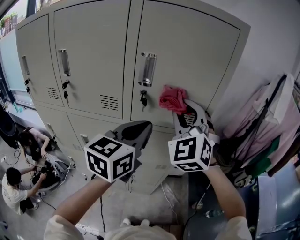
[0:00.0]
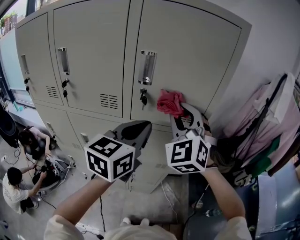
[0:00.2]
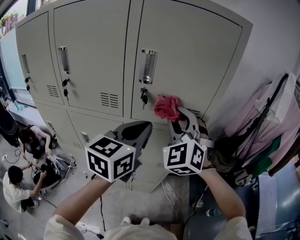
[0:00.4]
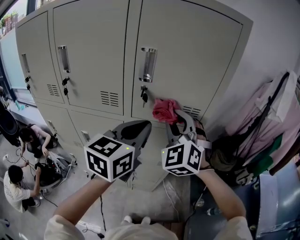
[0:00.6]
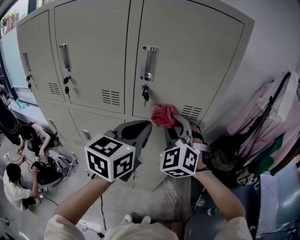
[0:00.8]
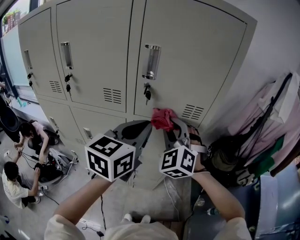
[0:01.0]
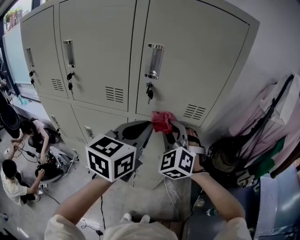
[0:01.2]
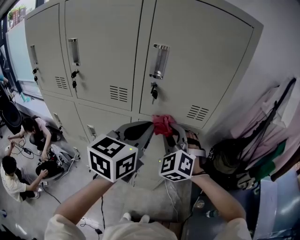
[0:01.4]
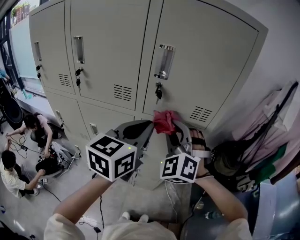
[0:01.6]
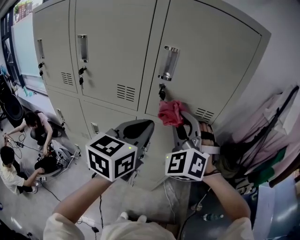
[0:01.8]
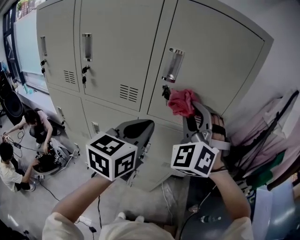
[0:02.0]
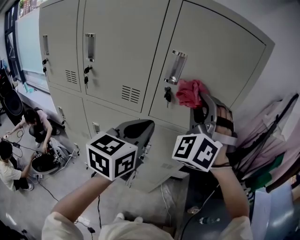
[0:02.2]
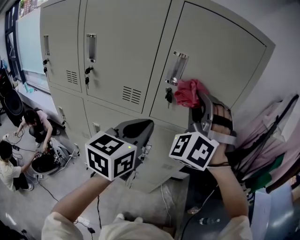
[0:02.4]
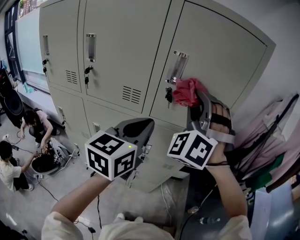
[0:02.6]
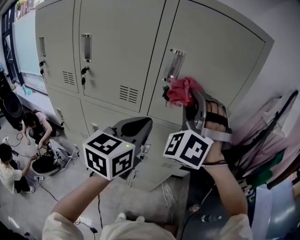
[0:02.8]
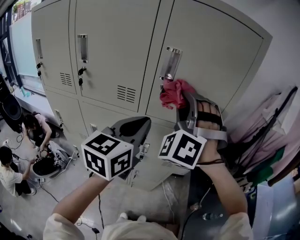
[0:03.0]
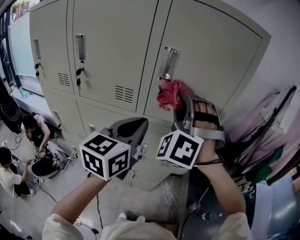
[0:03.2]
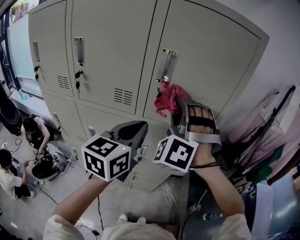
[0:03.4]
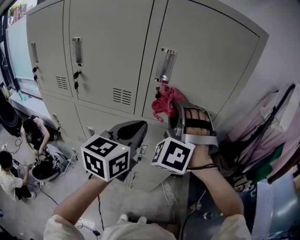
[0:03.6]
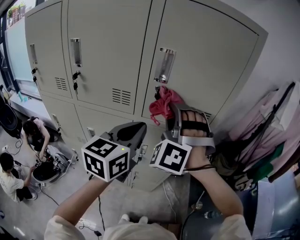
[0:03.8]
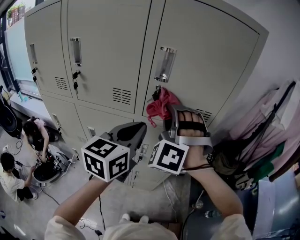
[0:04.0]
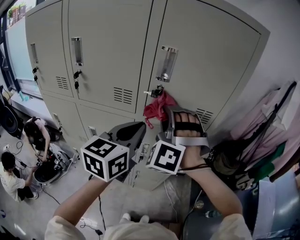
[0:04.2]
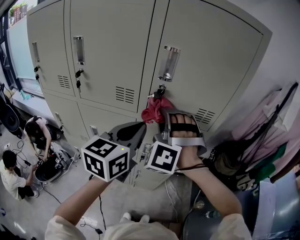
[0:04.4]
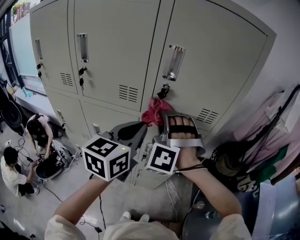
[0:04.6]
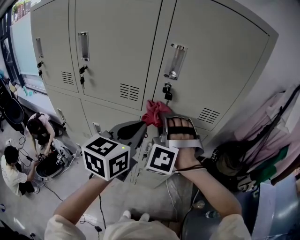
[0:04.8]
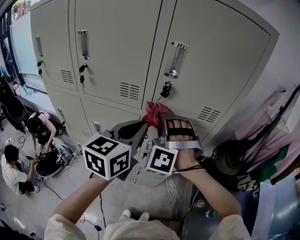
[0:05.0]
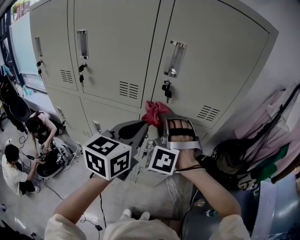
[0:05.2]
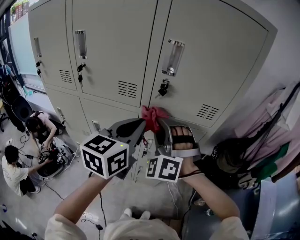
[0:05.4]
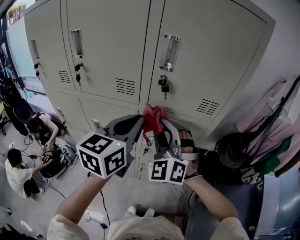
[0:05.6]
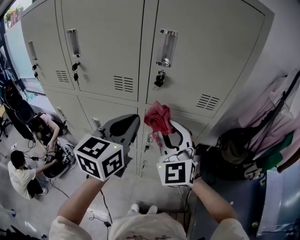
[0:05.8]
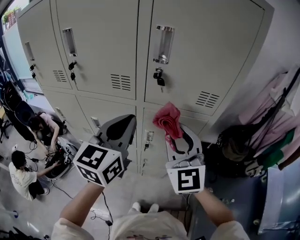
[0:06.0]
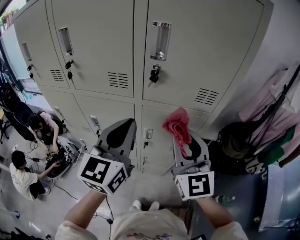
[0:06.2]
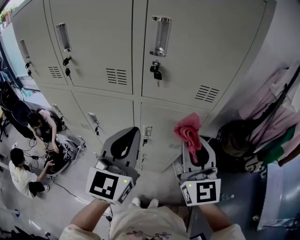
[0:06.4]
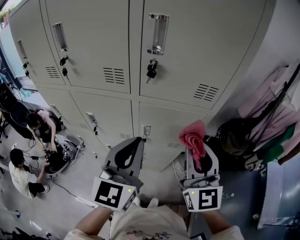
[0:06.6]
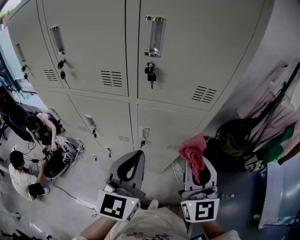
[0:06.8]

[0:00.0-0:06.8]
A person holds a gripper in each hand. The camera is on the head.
0:00.0 to 0:01.4: The right gripper goes roughly 15 cm downward.
0:01.4 to 0:02.8: The right gripper goes roughly 15 cm upward, and changes its angle by roughly 30 degrees.
0:02.8 to 0:04.0: The right gripper travels downward by about 10 cm.
0:04.0 to 0:05.4: The right gripper shifts approximately 10 cm downward.
0:05.4 to 0:06.8: The left gripper heads backward and downward, covering about 10 cm, while the right gripper travels to the right and backward by some 20 cm, and rotates around the line of its fingers by about 70 degrees, clockwise from behind.

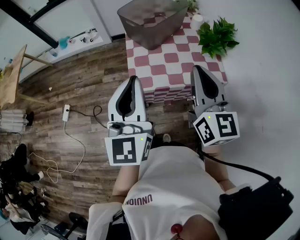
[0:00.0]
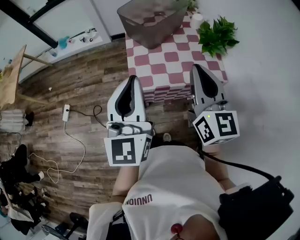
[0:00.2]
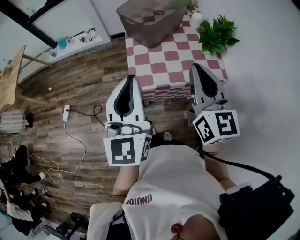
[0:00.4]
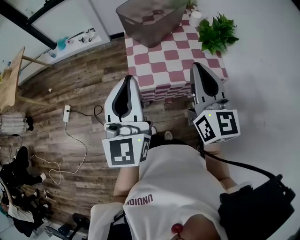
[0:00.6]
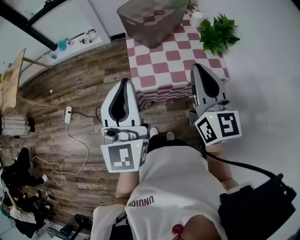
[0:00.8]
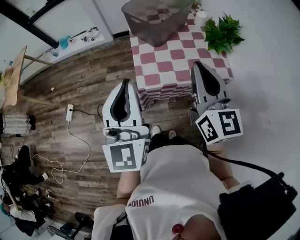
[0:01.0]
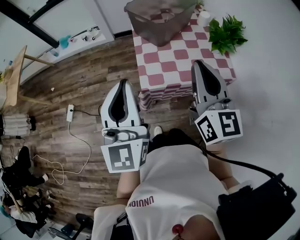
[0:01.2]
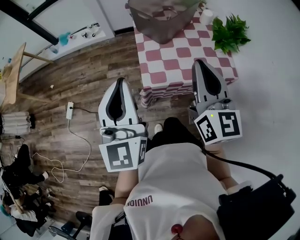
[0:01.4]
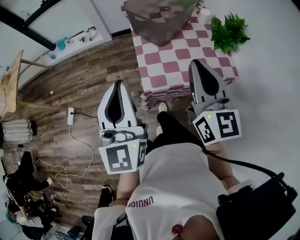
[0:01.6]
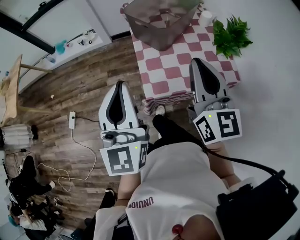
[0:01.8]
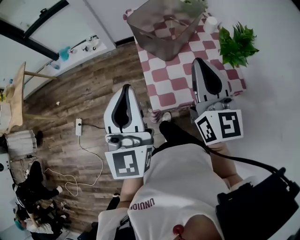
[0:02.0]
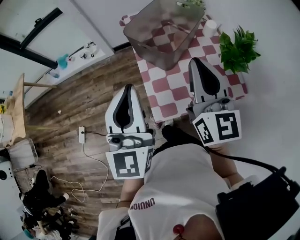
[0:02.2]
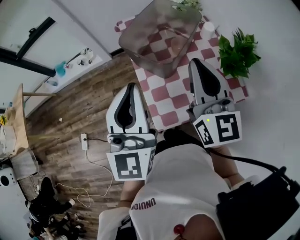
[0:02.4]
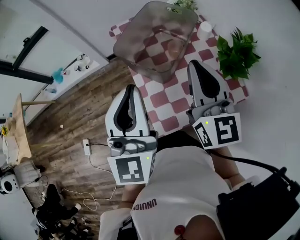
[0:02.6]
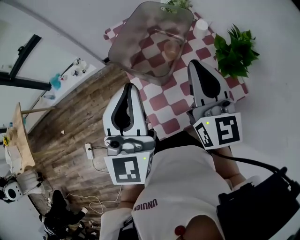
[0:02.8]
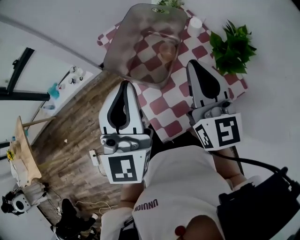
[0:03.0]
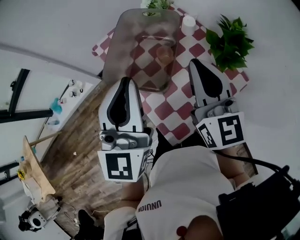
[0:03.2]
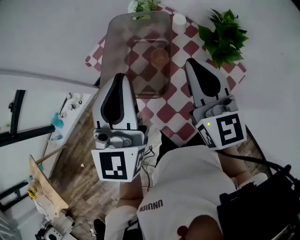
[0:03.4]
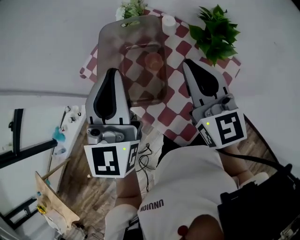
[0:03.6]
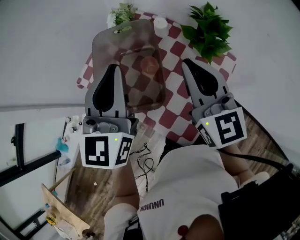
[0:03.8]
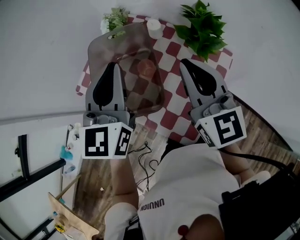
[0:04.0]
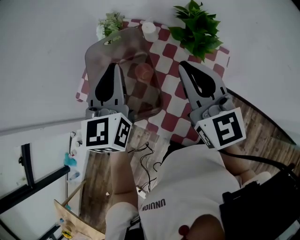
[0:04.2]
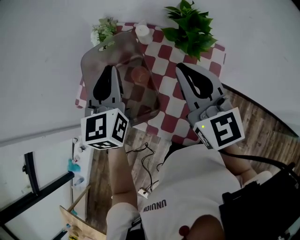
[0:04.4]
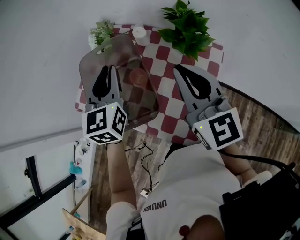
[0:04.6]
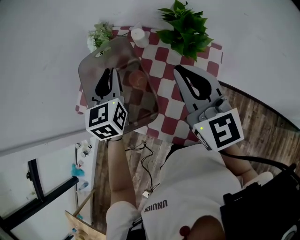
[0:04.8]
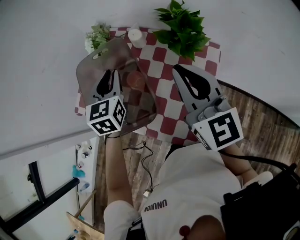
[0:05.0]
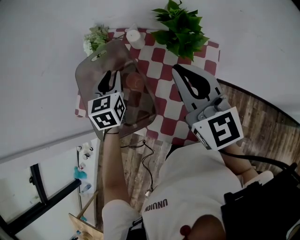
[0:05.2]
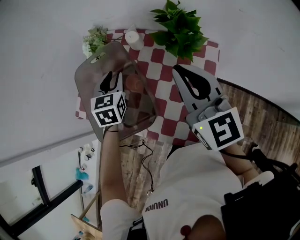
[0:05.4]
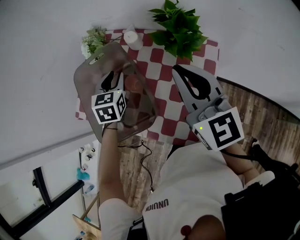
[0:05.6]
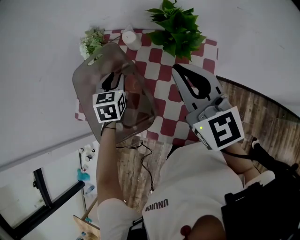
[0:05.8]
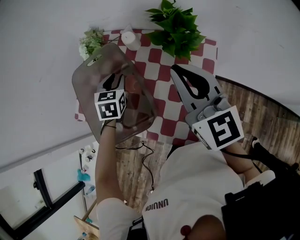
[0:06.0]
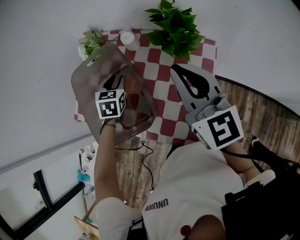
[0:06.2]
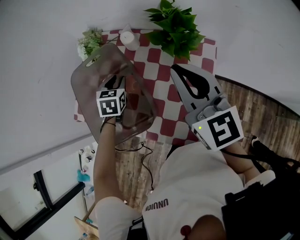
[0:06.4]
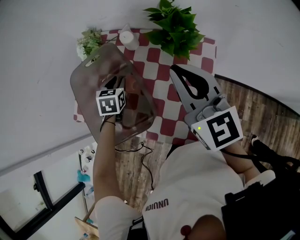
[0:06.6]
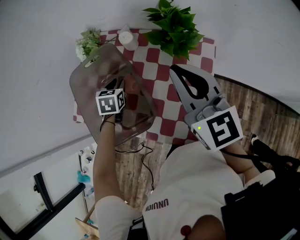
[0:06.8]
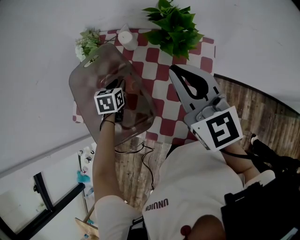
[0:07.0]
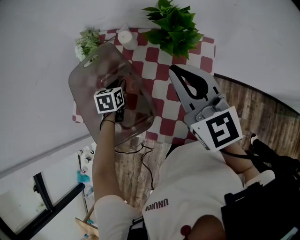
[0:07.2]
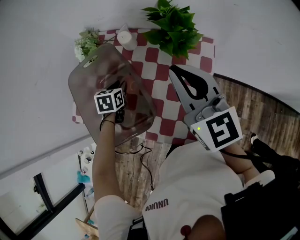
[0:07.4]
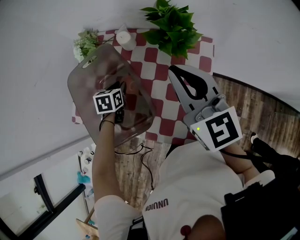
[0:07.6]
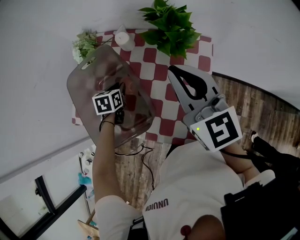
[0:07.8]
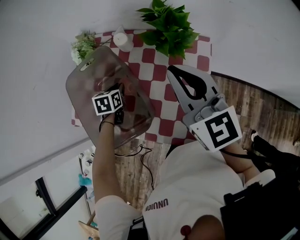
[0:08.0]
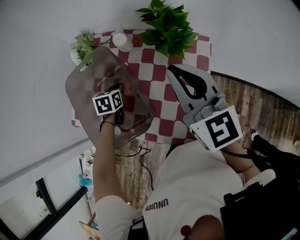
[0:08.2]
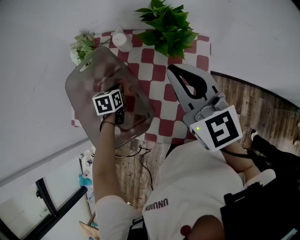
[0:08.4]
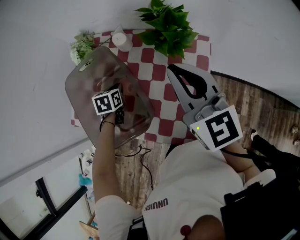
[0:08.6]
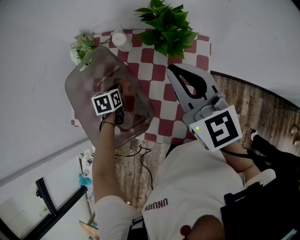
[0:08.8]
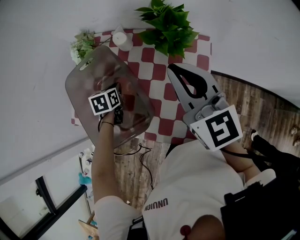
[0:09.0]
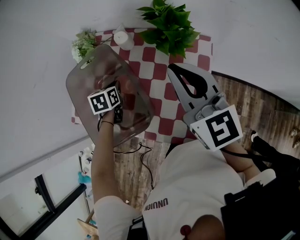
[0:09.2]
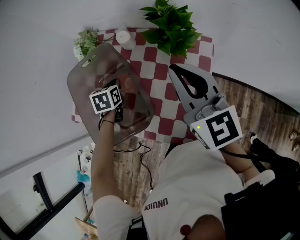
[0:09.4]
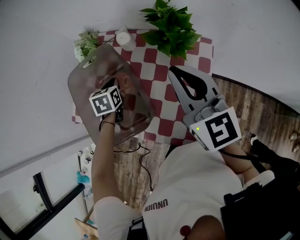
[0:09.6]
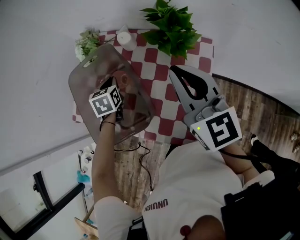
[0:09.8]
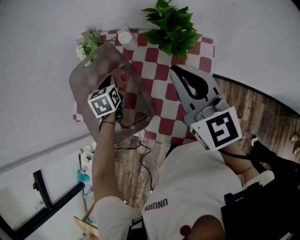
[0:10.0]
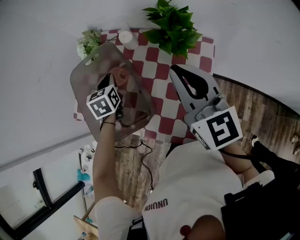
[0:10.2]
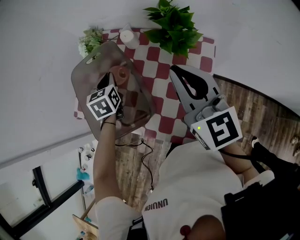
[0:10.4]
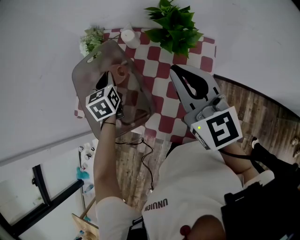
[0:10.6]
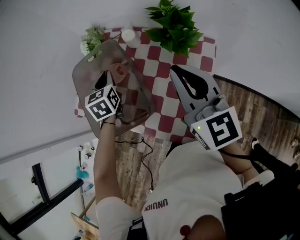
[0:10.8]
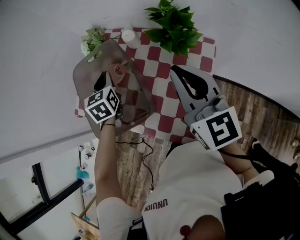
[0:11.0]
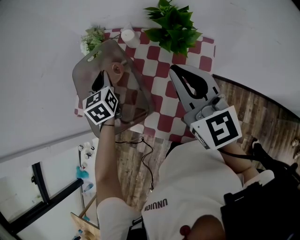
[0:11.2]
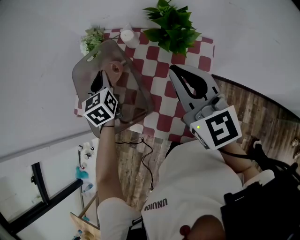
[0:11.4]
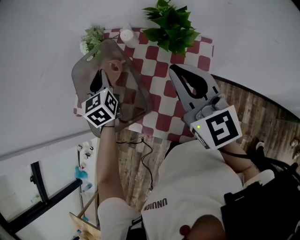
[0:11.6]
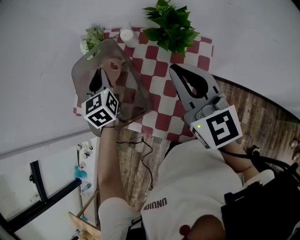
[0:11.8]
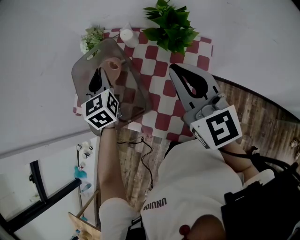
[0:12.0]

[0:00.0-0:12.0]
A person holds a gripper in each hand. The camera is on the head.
0:00.0 to 0:01.6: The grippers both shift to the left by about 10 cm.
0:01.6 to 0:03.0: The grippers both shift forward by about 25 cm. The left gripper rotates roughly 20 degrees.
0:03.0 to 0:04.4: The right gripper swivels approximately 30 degrees, while the left gripper moves some 20 cm, and rotates about 40 degrees.
0:04.4 to 0:06.0: The left gripper shifts roughly 20 cm downward and forward, points its fingers roughly 30 degrees further downward, and opens up.
0:06.0 to 0:07.6: The left gripper goes some 10 cm downward.
0:07.6 to 0:09.0: The grippers stay close to where they were, moving slightly.
0:09.0 to 0:10.4: The left gripper moves upward, about 10 cm, and swivels approximately 20 degrees.
0:10.4 to 0:12.0: The left gripper travels upward by approximately 10 cm.

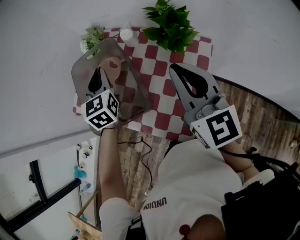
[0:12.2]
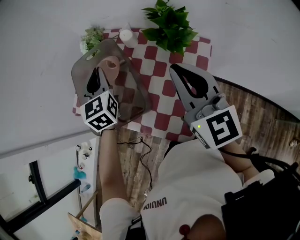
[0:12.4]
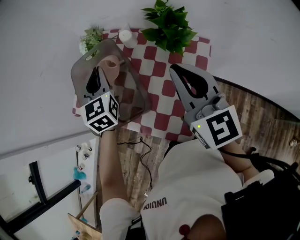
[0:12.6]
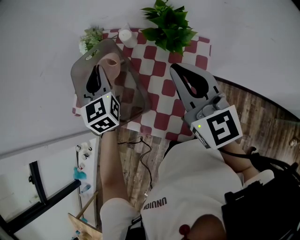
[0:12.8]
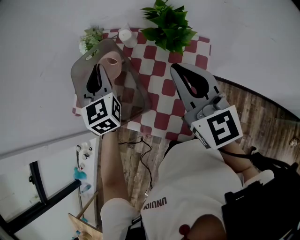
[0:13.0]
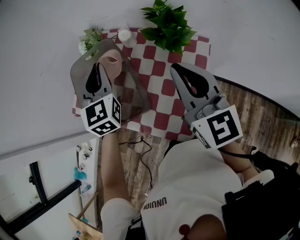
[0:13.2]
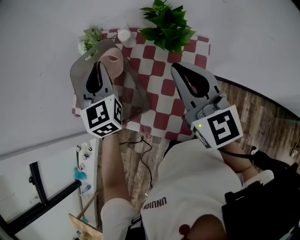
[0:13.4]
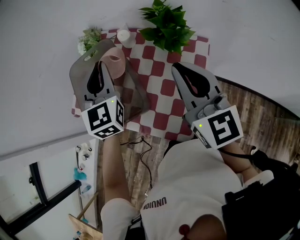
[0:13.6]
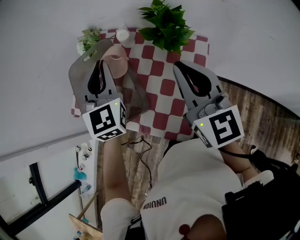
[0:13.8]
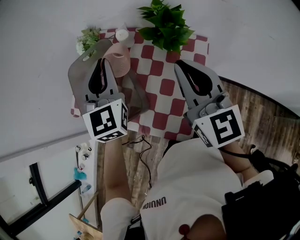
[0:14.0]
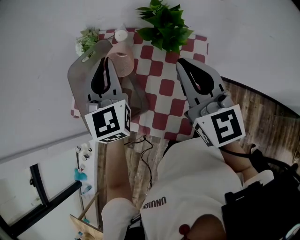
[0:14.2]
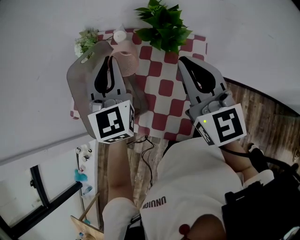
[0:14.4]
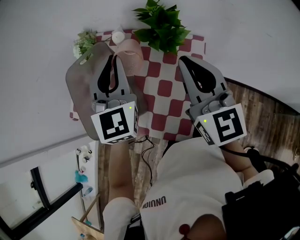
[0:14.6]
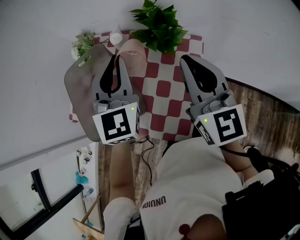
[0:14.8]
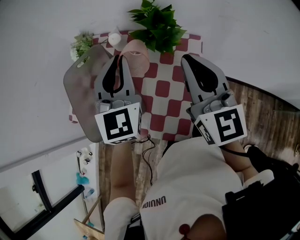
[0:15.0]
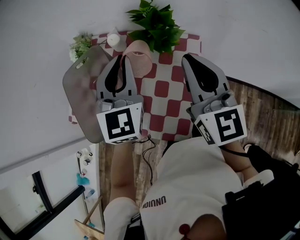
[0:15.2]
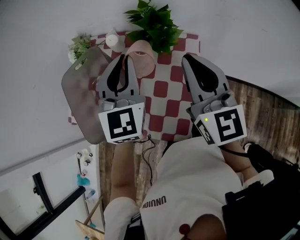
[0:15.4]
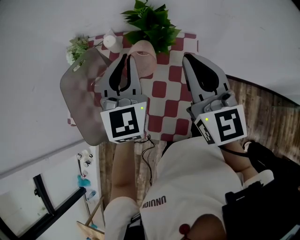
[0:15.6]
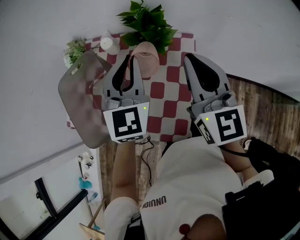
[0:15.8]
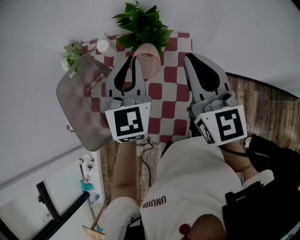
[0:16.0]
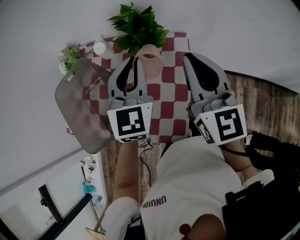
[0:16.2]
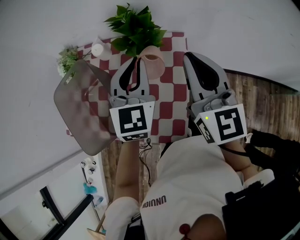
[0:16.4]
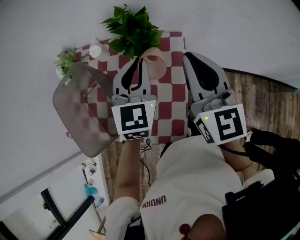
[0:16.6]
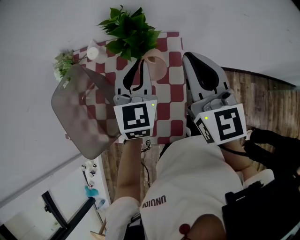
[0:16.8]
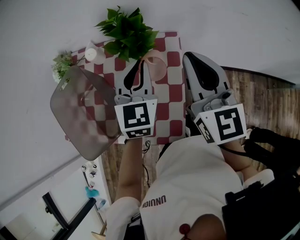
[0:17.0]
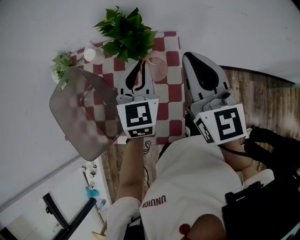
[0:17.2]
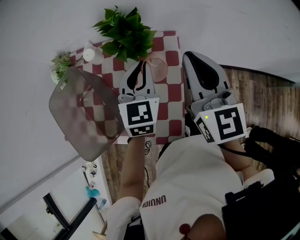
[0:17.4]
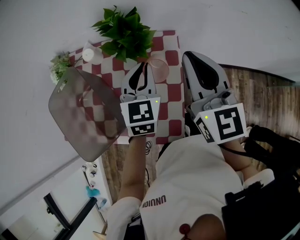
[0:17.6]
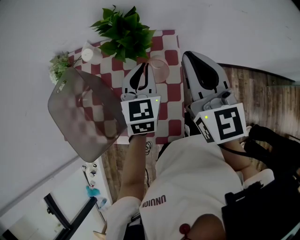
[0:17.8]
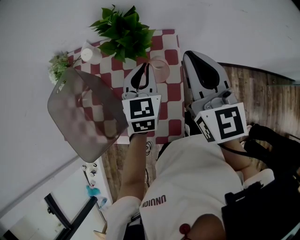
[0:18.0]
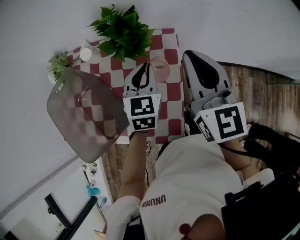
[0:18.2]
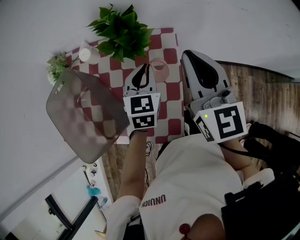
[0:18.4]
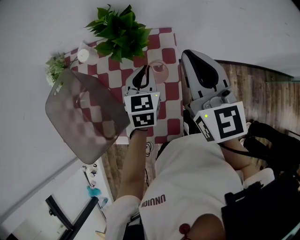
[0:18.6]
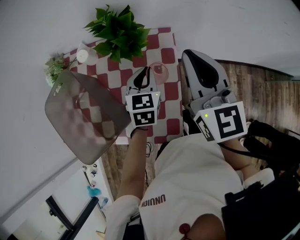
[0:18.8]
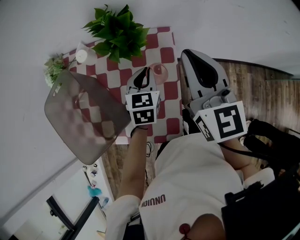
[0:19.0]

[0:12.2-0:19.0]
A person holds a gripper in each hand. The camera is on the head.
0:12.2 to 0:13.6: The left gripper shifts roughly 5 cm upward.
0:13.6 to 0:15.0: The left gripper travels to the right by about 10 cm. The right gripper shifts approximately 5 cm to the right.
0:15.0 to 0:16.2: The left gripper travels to the right by approximately 10 cm. Meanwhile the right gripper heads to the right, covering approximately 5 cm.
0:16.2 to 0:17.6: The left gripper is displaced downward by about 10 cm.
0:17.6 to 0:19.0: The left gripper is displaced downward by roughly 10 cm.
